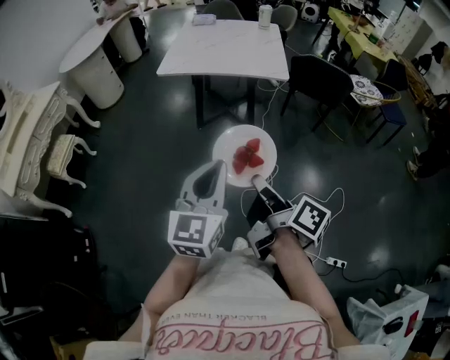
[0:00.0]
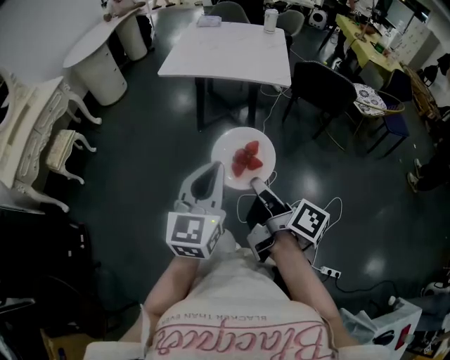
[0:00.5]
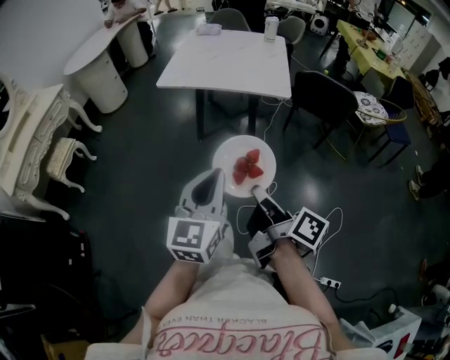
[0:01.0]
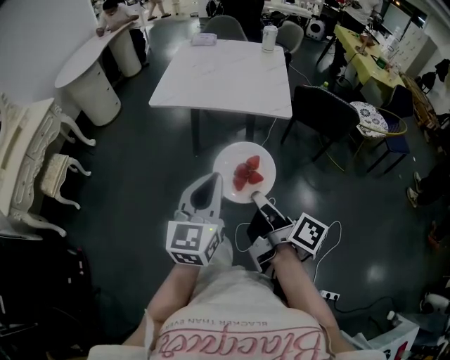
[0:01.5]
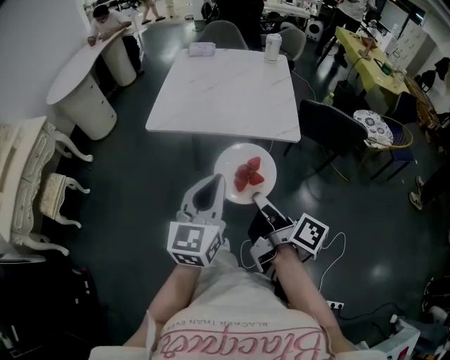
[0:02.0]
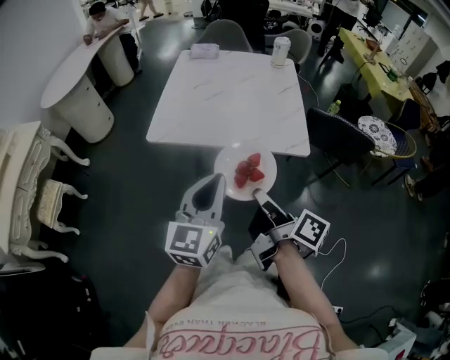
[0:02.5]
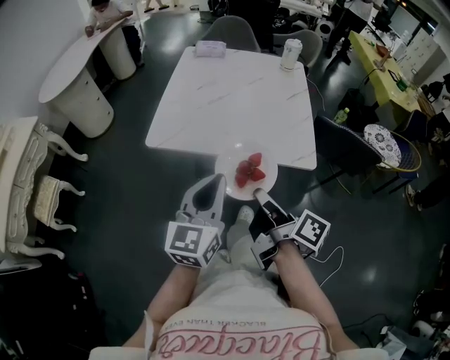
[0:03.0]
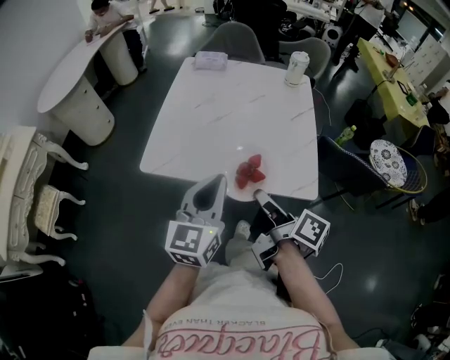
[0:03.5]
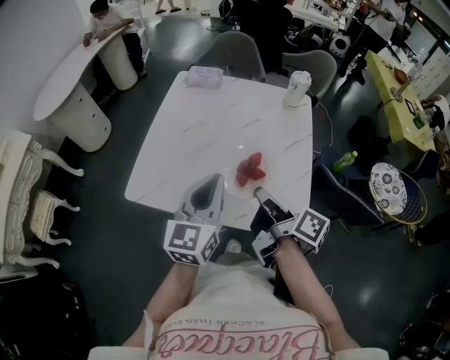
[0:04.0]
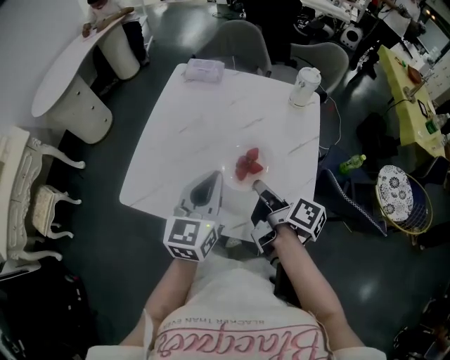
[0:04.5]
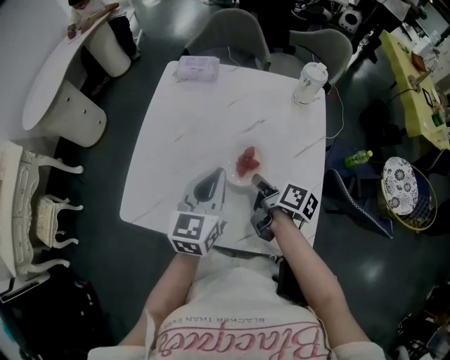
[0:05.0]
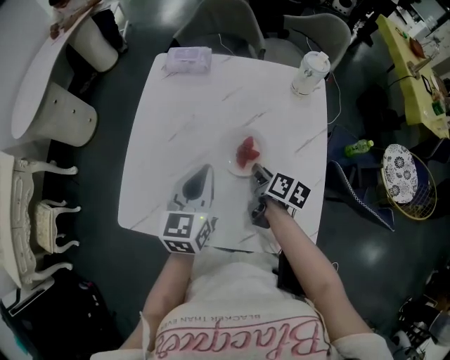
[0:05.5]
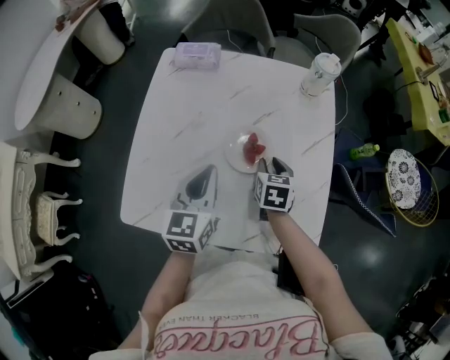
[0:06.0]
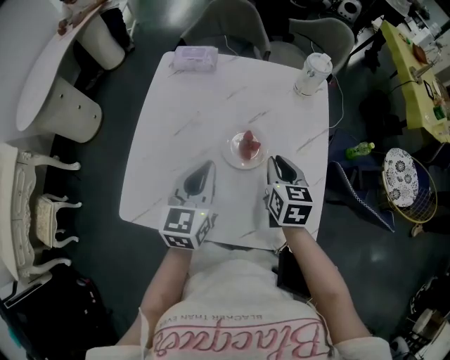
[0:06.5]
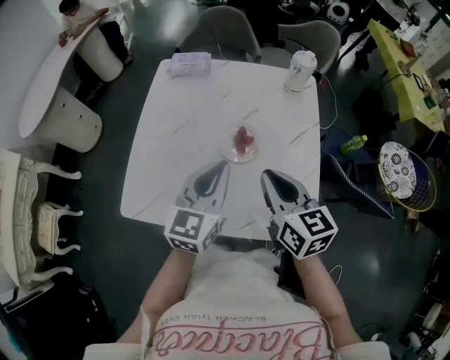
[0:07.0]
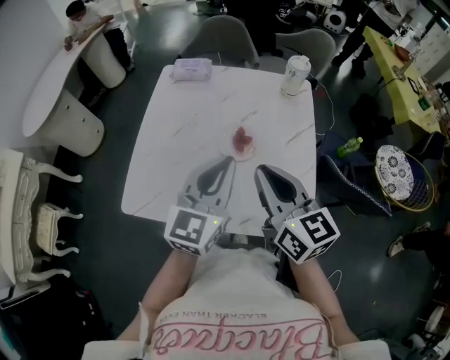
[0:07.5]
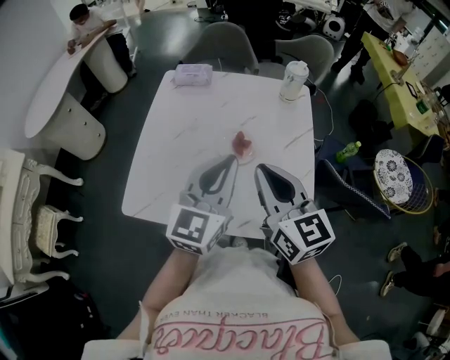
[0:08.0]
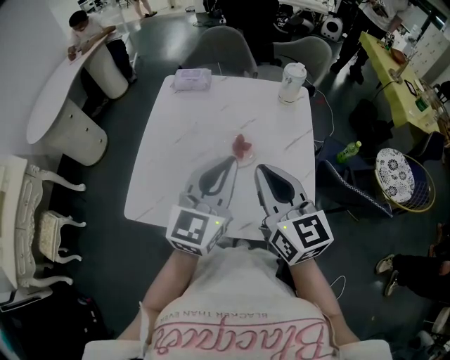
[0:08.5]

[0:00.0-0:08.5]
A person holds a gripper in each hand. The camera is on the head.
0:00.0 to 0:02.0: Both grippers travel together forward, approximately 30 cm.
0:02.0 to 0:04.0: The pair of grippers is taken forward, about 40 cm.
0:04.0 to 0:06.5: The grippers both shift forward and downward by roughly 20 cm. The right gripper rotates around the line of its fingers by some 60 degrees, counterclockwise from behind.
0:06.5 to 0:08.5: The left gripper shifts about 15 cm upward, backward and to the right, and turns by about 20 degrees, while the right gripper is displaced upward and backward by some 25 cm, and turns by some 30 degrees.

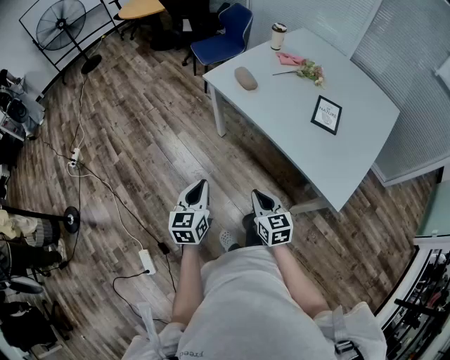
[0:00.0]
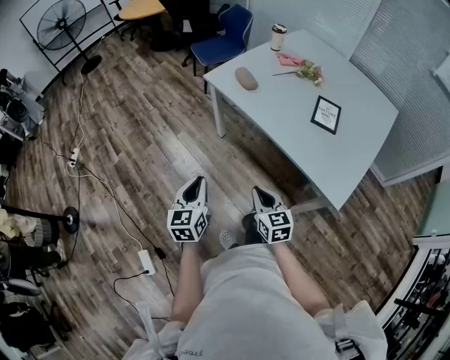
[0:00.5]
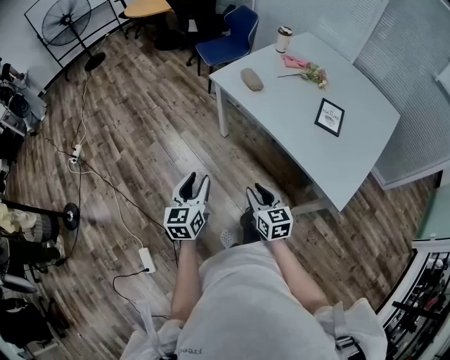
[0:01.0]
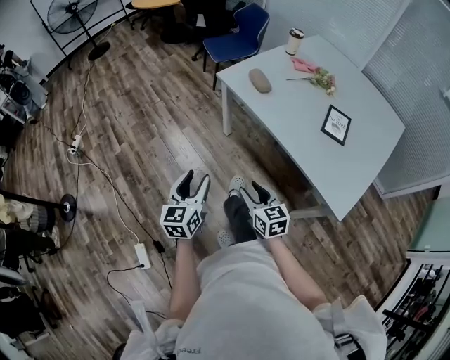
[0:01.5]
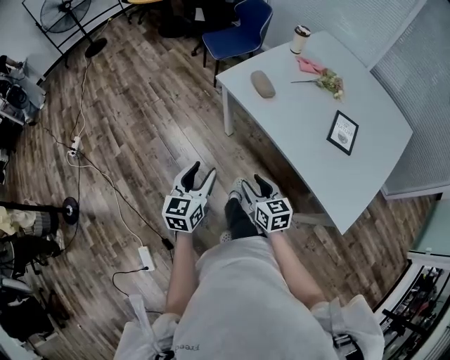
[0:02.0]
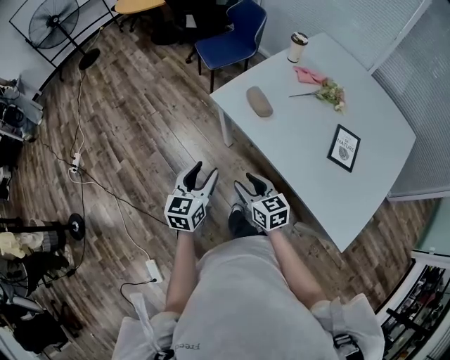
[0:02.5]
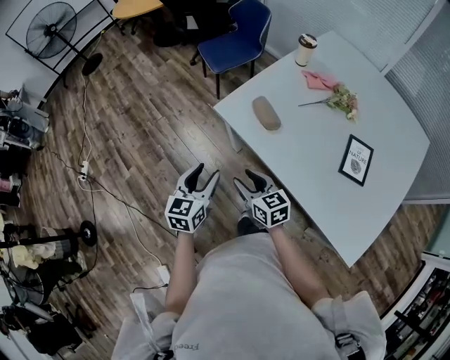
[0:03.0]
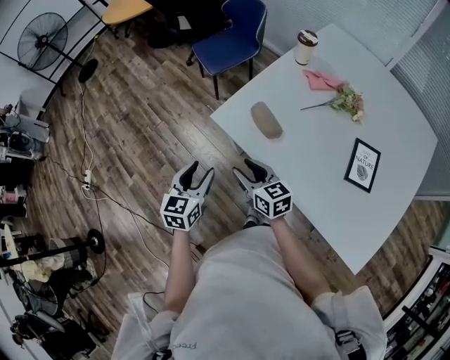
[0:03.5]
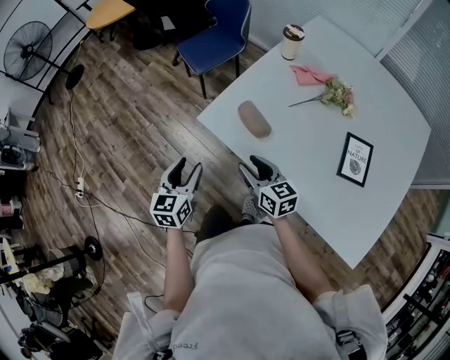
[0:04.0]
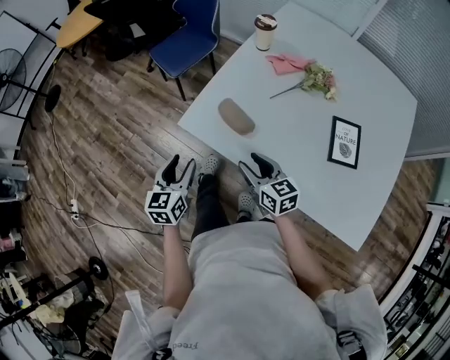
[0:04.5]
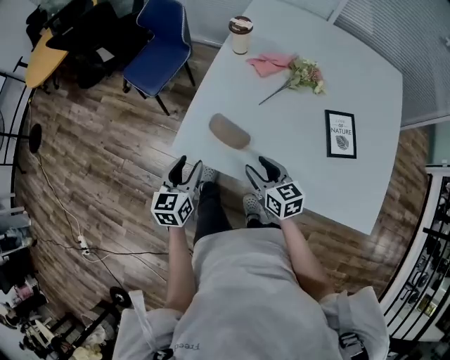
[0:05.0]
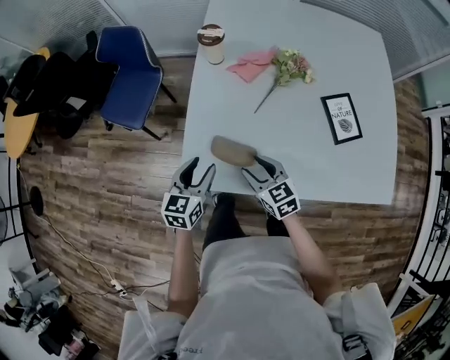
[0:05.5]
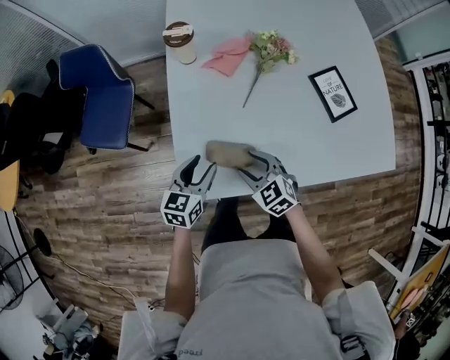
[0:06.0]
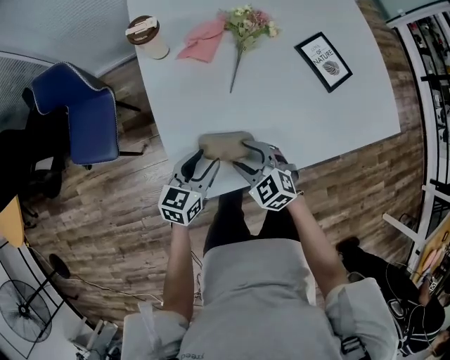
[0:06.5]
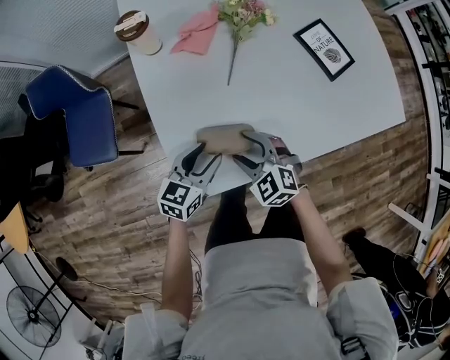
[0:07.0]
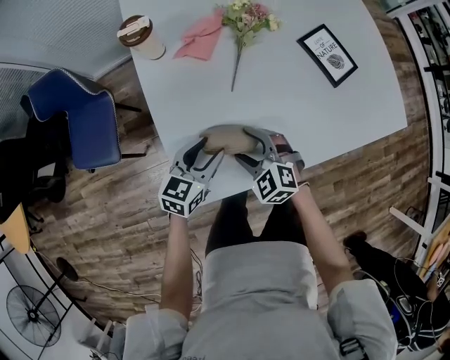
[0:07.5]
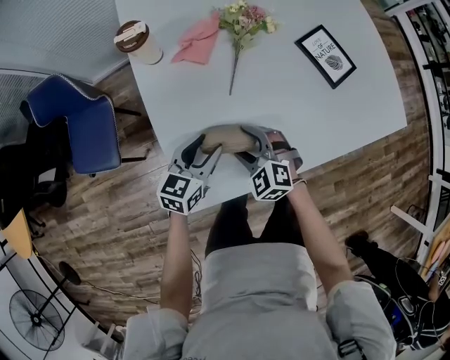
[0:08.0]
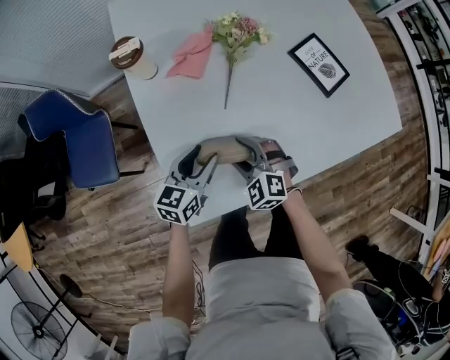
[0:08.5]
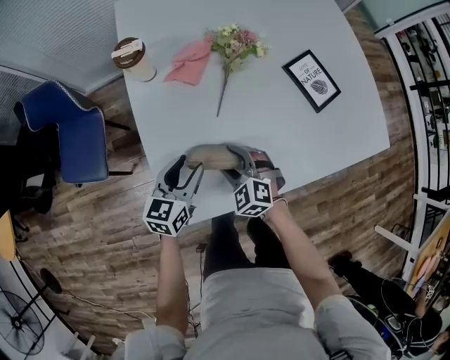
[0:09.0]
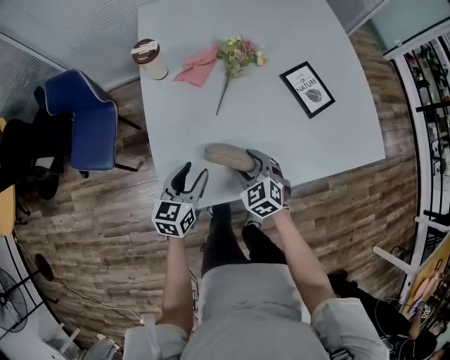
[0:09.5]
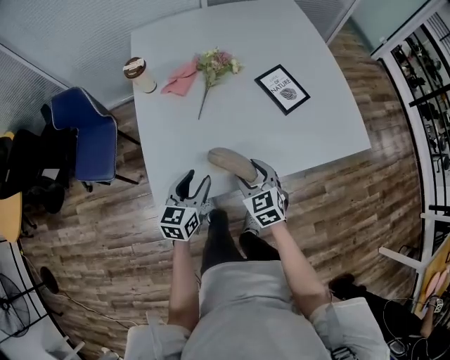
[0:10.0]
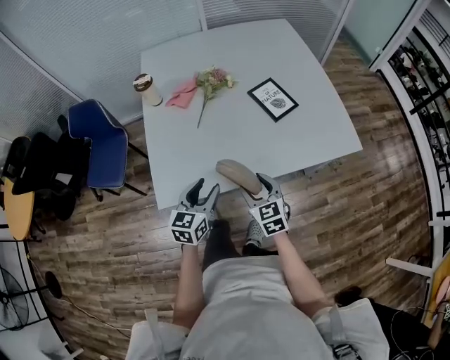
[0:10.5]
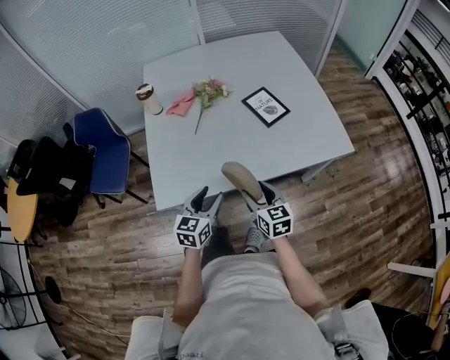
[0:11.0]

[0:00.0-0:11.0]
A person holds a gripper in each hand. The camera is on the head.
0:00.0 to 0:02.0: Both grippers travel together forward, roughly 15 cm. The right gripper opens its fingers. Meanwhile the left gripper opens its fingers.
0:02.0 to 0:03.5: The two grippers go some 30 cm forward.
0:03.5 to 0:05.5: The left gripper ends up roughly 25 cm from where it was, and rotates roughly 40 degrees. The right gripper ends up about 20 cm from where it was, and turns by roughly 40 degrees.
0:05.5 to 0:07.5: The right gripper moves downward, some 5 cm, and swivels about 30 degrees. The left gripper ends up about 10 cm from where it was, and changes its angle by some 40 degrees.
0:07.5 to 0:09.0: The grippers make only small movements.
0:09.0 to 0:11.0: The left gripper shifts roughly 30 cm backward, to the right and upward; the right gripper is displaced to the right, backward and upward by some 35 cm, and rolls clockwise, seen from behind, by roughly 50 degrees.

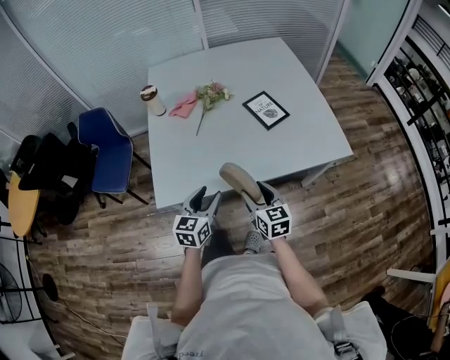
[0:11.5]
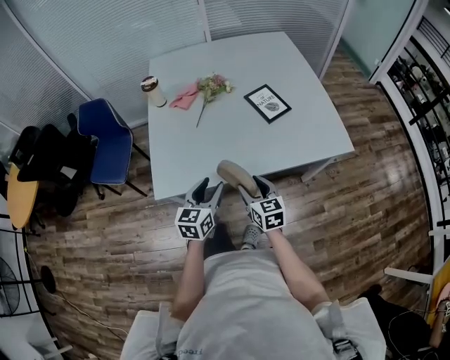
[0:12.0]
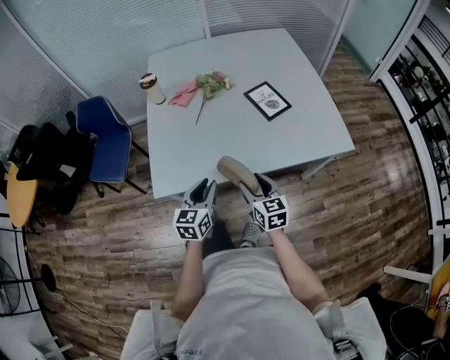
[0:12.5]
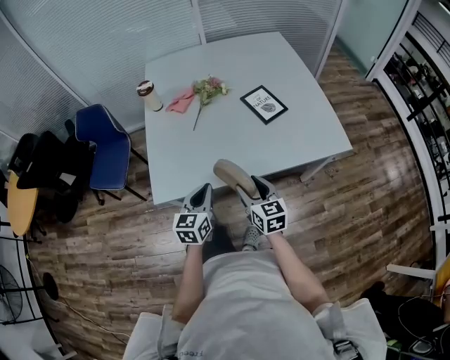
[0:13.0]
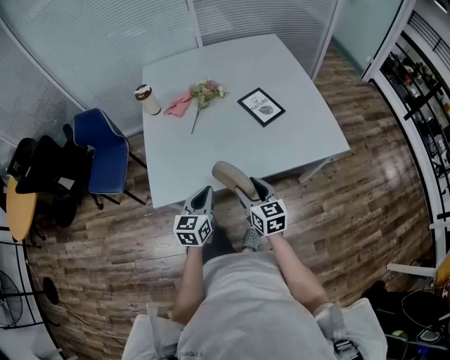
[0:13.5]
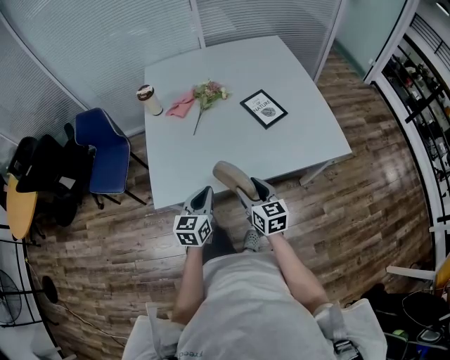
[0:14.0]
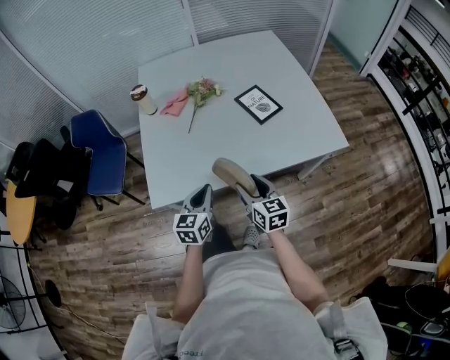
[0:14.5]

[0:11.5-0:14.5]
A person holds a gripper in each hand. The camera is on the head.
0:11.5 to 0:13.0: The left gripper closes.
0:13.0 to 0:14.5: Both grippers stay about where they are.

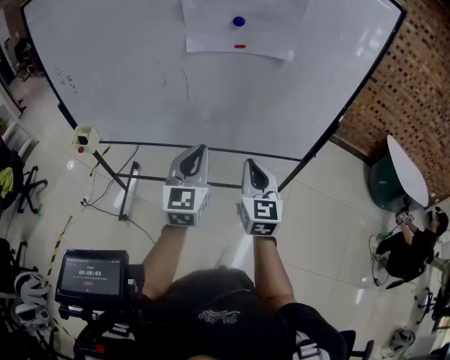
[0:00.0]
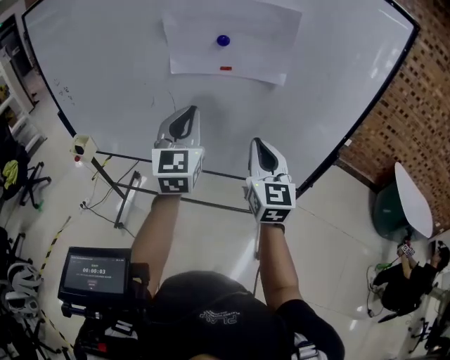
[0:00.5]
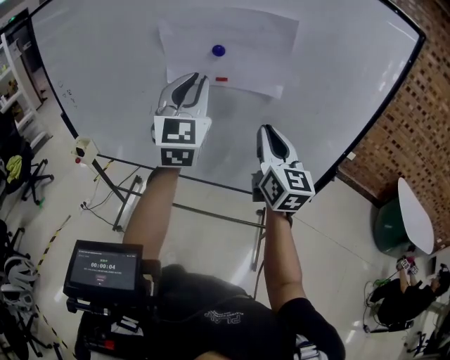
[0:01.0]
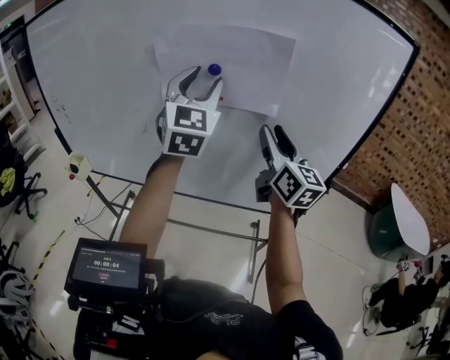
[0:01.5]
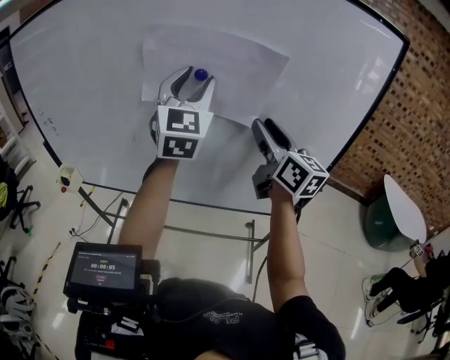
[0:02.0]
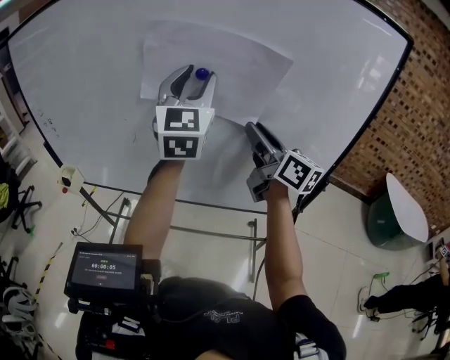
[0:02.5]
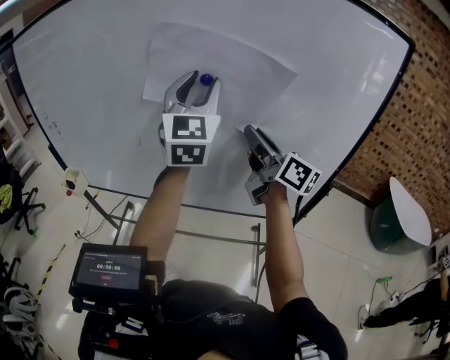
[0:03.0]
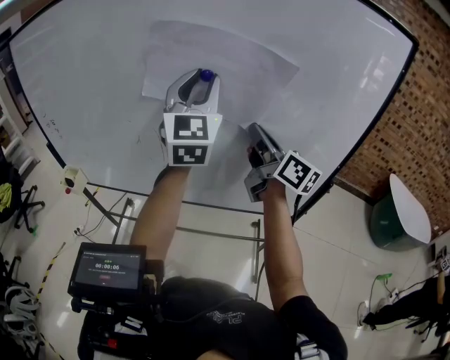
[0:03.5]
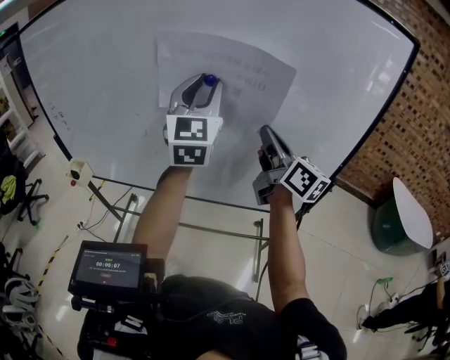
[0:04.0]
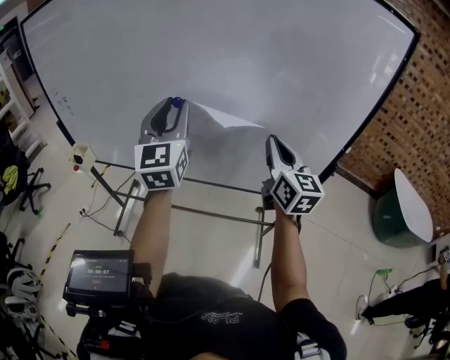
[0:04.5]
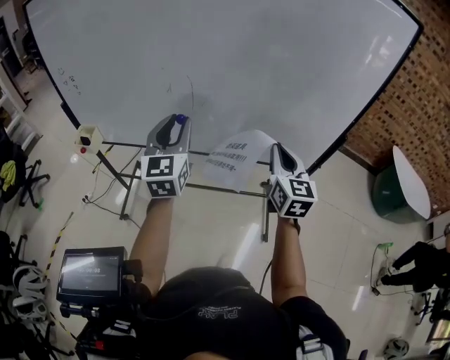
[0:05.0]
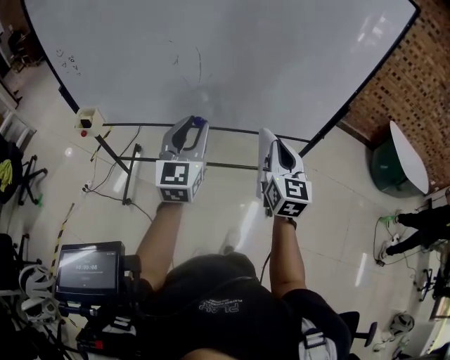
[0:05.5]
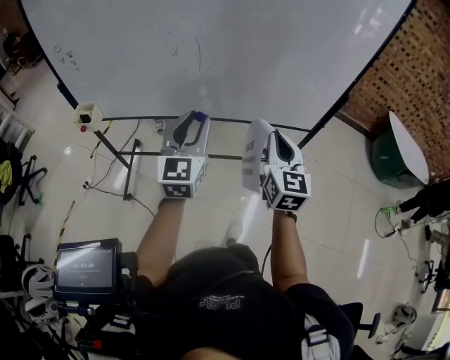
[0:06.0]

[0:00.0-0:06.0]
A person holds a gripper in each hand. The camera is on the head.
0:00.0 to 0:02.0: The left gripper moves upward and forward, about 35 cm, changes its angle by approximately 30 degrees, and opens, while the right gripper heads forward, upward and to the right, covering about 30 cm, rotates approximately 30 degrees, and opens.
0:02.0 to 0:04.0: The right gripper closes up.
0:04.0 to 0:06.0: The right gripper heads backward and downward, covering some 25 cm, and changes its angle by about 50 degrees, while the left gripper is displaced downward, backward and to the left by about 35 cm, and changes its angle by roughly 20 degrees.
